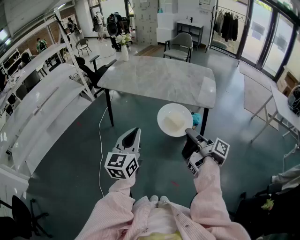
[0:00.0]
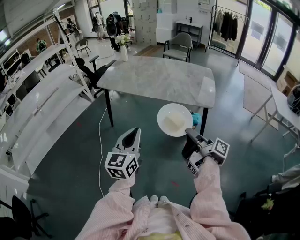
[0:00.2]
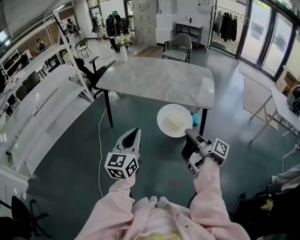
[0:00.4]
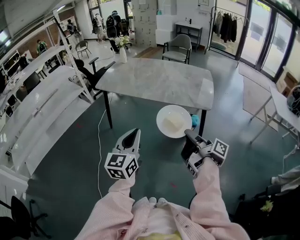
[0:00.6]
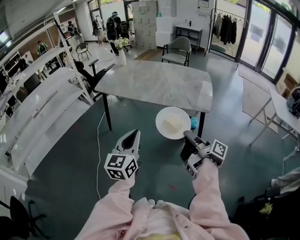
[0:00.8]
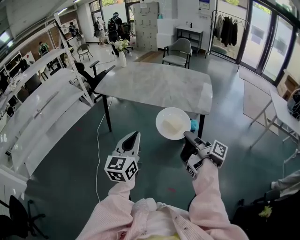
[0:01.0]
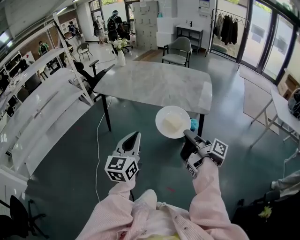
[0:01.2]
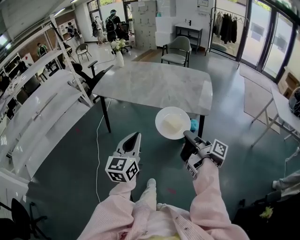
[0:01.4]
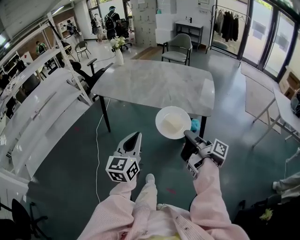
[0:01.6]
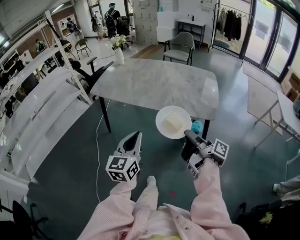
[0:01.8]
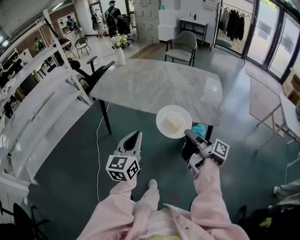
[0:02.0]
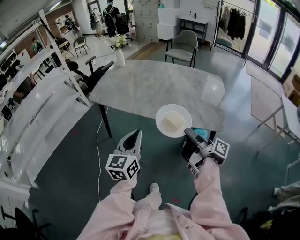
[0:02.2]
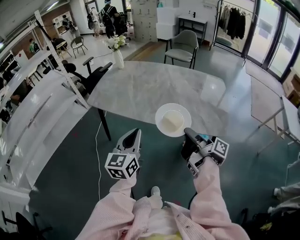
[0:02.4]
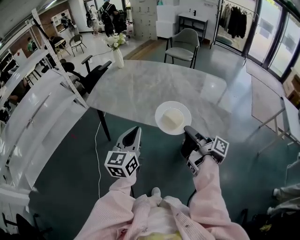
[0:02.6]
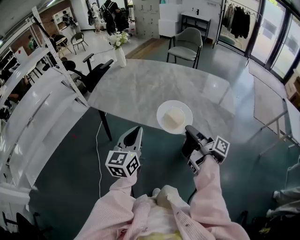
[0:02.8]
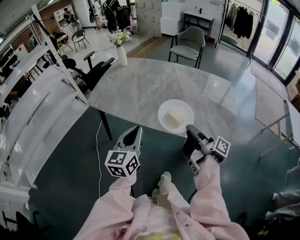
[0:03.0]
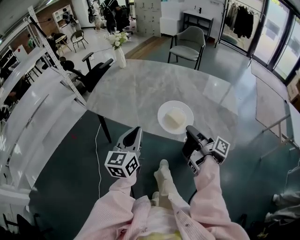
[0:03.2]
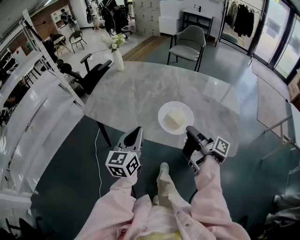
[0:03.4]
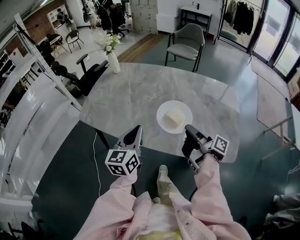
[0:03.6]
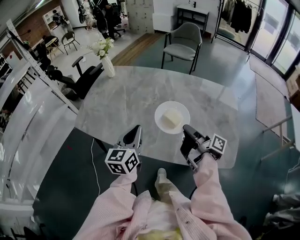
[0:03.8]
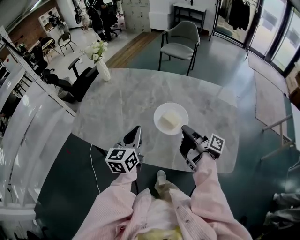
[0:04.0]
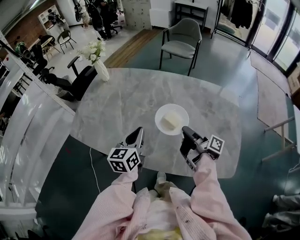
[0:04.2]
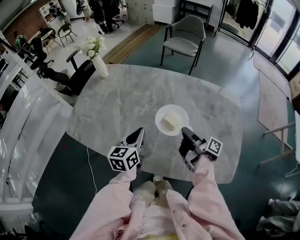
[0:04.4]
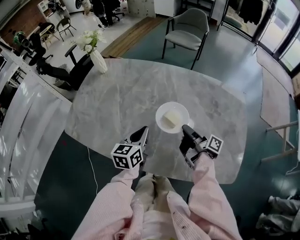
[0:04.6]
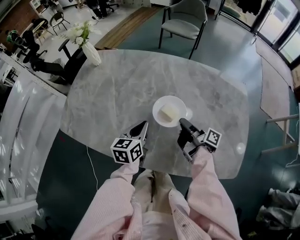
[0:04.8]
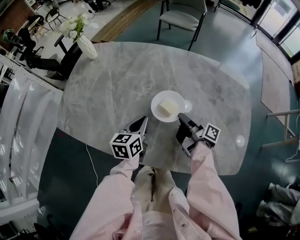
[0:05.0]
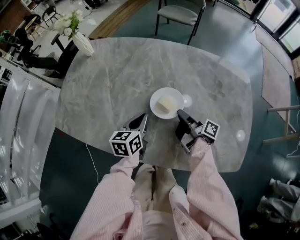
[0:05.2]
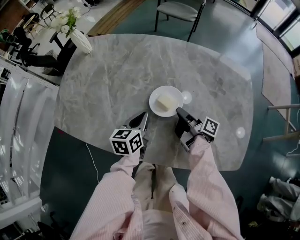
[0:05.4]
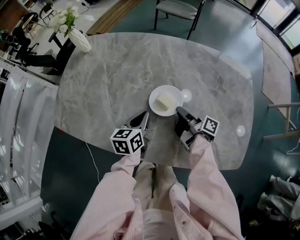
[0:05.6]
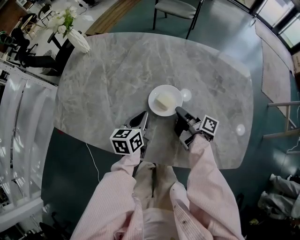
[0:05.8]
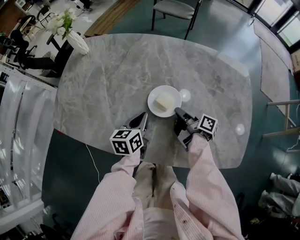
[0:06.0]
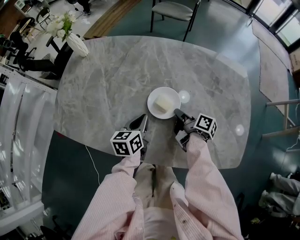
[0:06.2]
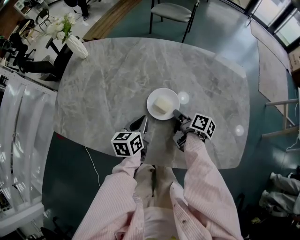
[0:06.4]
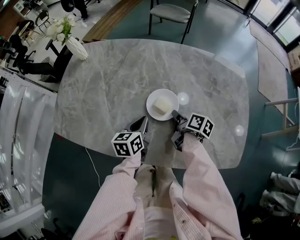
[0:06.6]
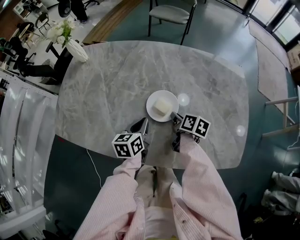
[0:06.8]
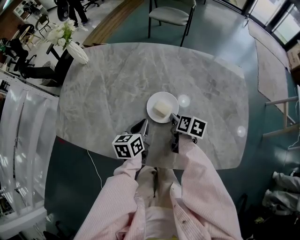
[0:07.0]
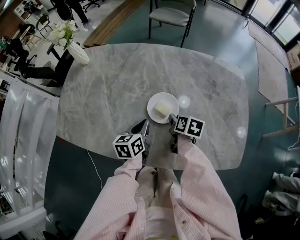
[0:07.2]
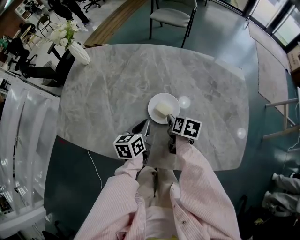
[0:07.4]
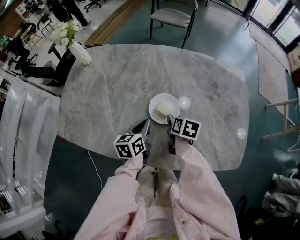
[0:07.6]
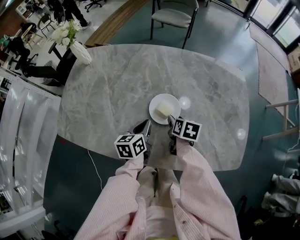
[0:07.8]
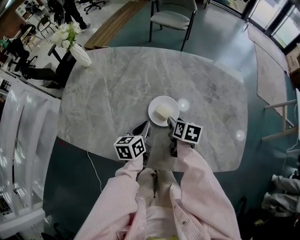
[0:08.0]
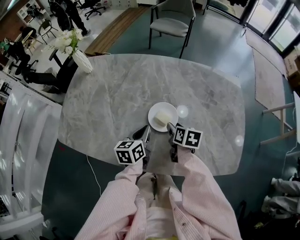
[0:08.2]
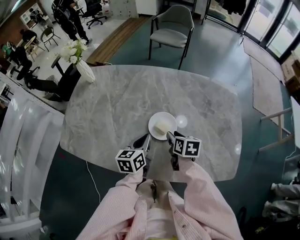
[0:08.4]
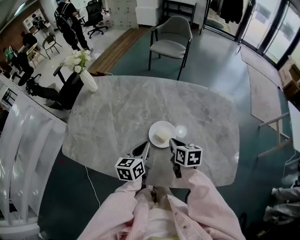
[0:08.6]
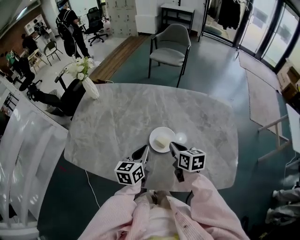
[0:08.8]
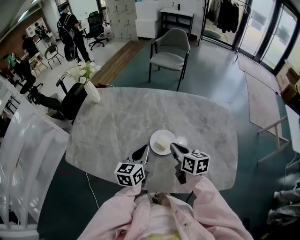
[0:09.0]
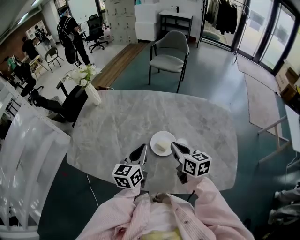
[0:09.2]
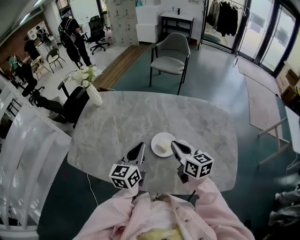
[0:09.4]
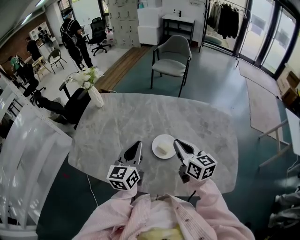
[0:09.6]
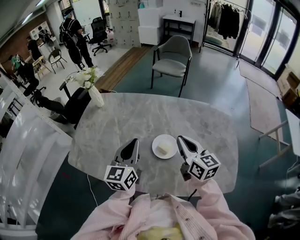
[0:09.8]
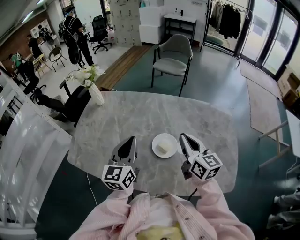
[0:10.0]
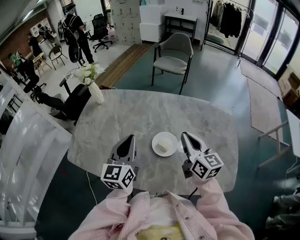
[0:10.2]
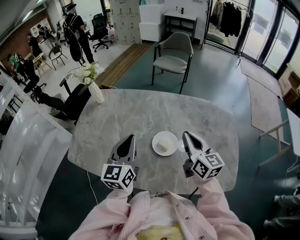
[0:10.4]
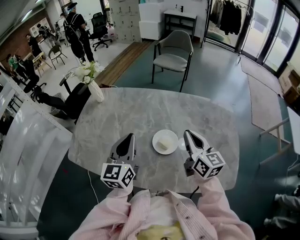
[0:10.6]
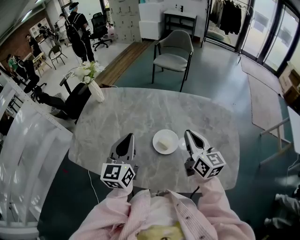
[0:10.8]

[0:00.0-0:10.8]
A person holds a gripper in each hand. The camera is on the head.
0:00.0 to 0:01.6: The left gripper ends up approximately 10 cm from where it was.
0:01.6 to 0:03.0: The left gripper changes place by some 35 cm.
0:03.0 to 0:04.6: The left gripper ends up about 35 cm from where it was, and changes its angle by roughly 20 degrees.
0:04.6 to 0:06.2: The left gripper moves downward, roughly 10 cm.
0:07.8 to 0:09.2: The left gripper shifts approximately 15 cm upward, and swivels some 20 degrees.
0:09.2 to 0:10.8: The left gripper heads upward, covering about 10 cm.

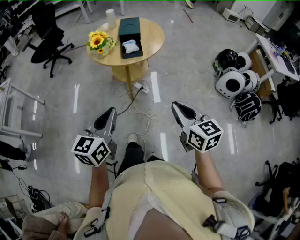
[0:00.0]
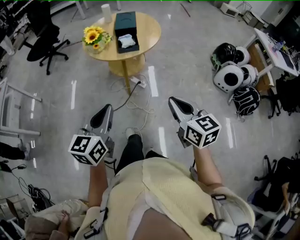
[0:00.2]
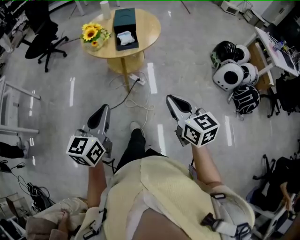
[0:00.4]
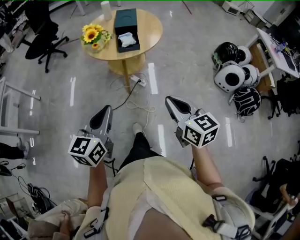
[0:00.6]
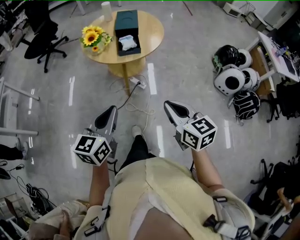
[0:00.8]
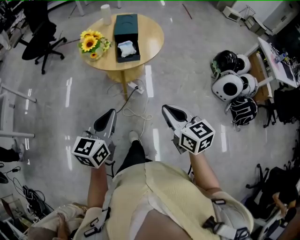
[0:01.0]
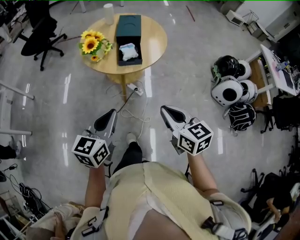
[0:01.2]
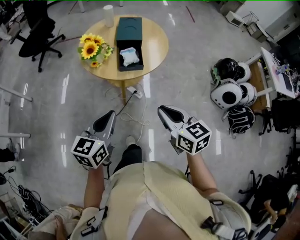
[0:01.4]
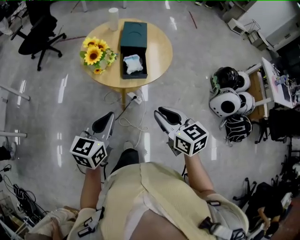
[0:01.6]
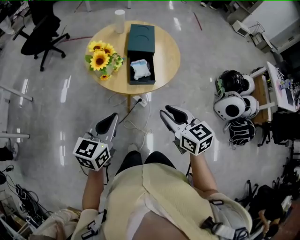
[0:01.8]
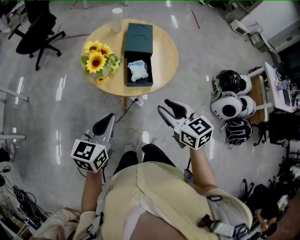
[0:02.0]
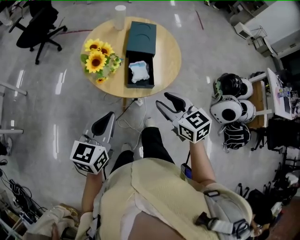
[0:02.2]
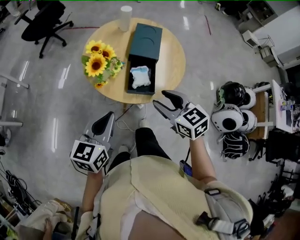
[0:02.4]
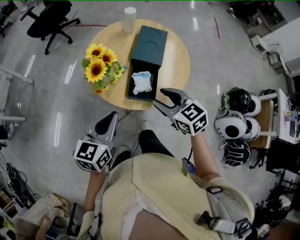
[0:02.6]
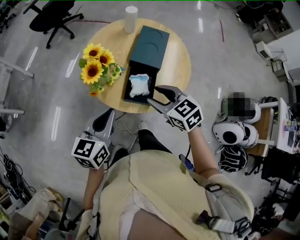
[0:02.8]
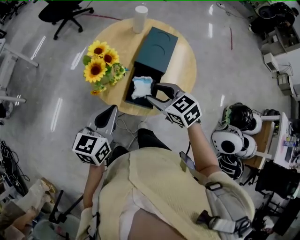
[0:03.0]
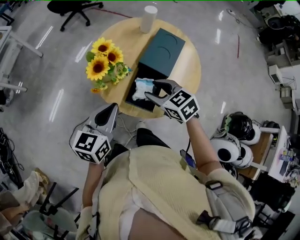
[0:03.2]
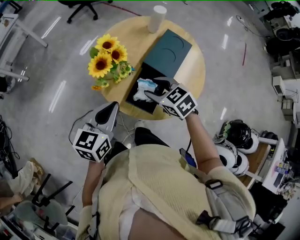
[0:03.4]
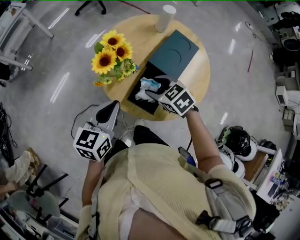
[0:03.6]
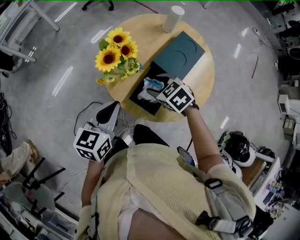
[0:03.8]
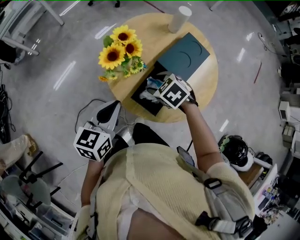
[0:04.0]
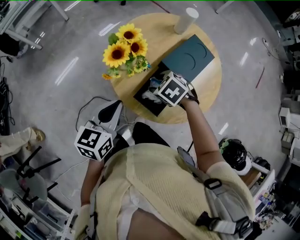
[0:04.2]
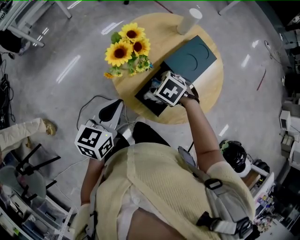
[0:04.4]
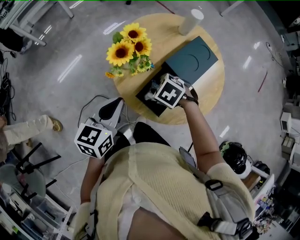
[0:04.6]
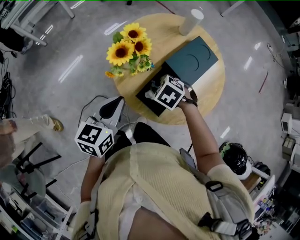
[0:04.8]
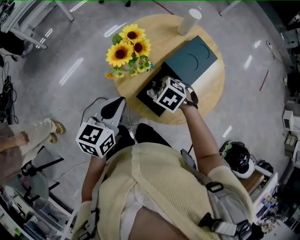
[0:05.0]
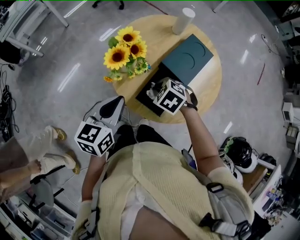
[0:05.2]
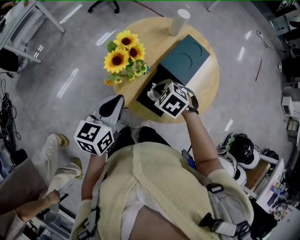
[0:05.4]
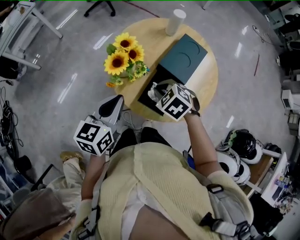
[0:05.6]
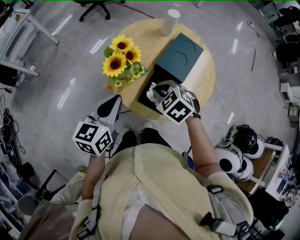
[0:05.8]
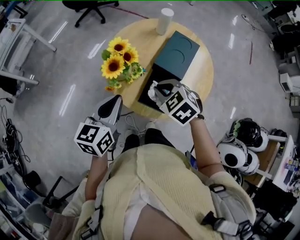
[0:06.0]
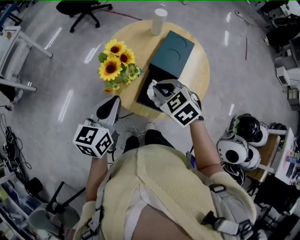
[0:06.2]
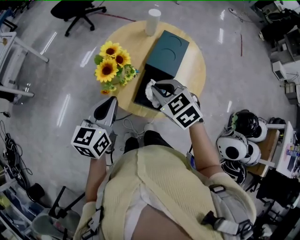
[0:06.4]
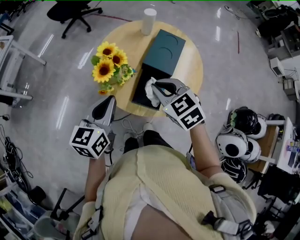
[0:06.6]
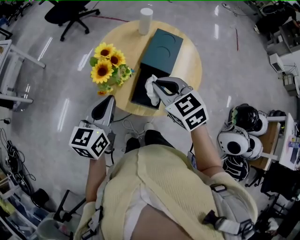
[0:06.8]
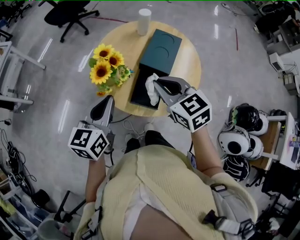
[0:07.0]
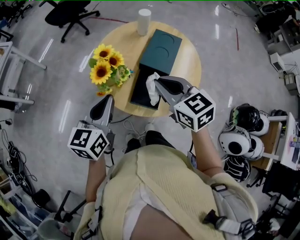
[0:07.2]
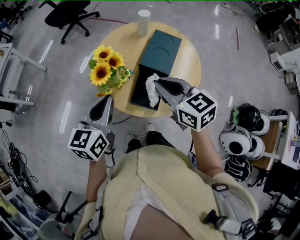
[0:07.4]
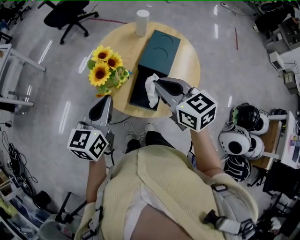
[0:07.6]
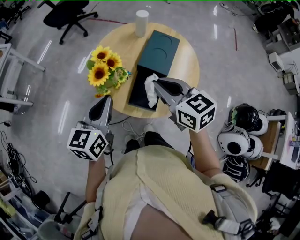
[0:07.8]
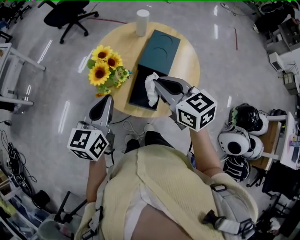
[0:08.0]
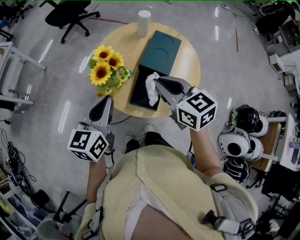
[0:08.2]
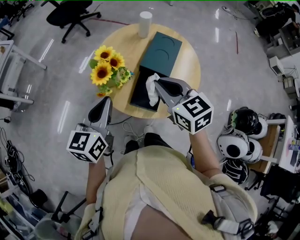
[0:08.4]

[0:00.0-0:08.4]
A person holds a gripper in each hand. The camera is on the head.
0:00.0 to 0:01.4: Both grippers move forward, some 15 cm.
0:01.4 to 0:02.8: The grippers both shift forward by roughly 25 cm. The right gripper rotates some 40 degrees, and opens.
0:02.8 to 0:04.2: The left gripper turns by roughly 20 degrees, while the right gripper is displaced downward by some 10 cm, and angles its fingers downward, by about 30 degrees.
0:04.2 to 0:05.6: The right gripper closes.
0:05.6 to 0:07.0: The right gripper is displaced upward by approximately 15 cm, and points its fingers some 30 degrees further upward.
0:07.0 to 0:08.4: There are only small adjustments of the grippers.

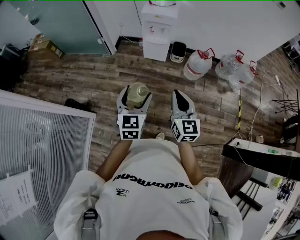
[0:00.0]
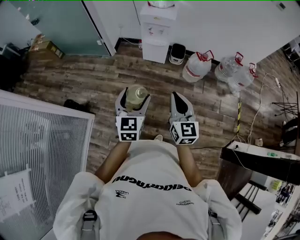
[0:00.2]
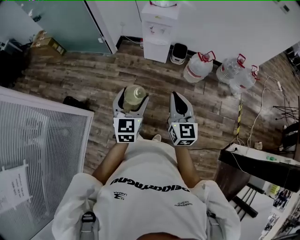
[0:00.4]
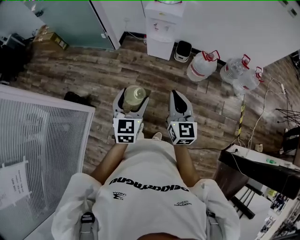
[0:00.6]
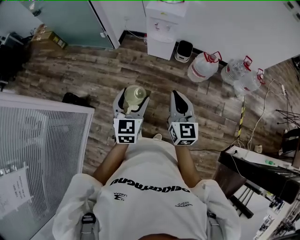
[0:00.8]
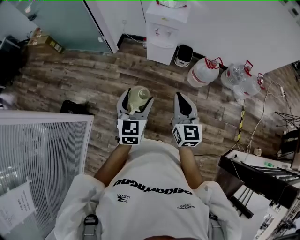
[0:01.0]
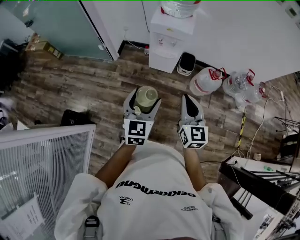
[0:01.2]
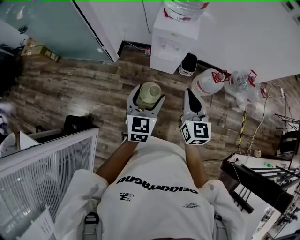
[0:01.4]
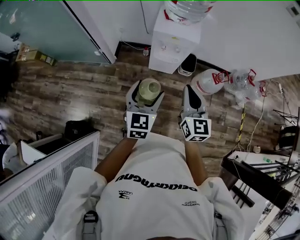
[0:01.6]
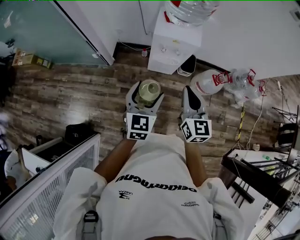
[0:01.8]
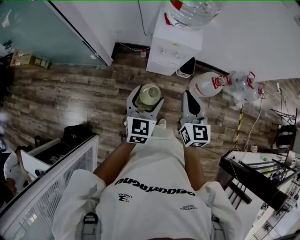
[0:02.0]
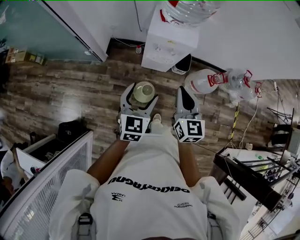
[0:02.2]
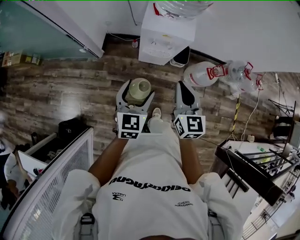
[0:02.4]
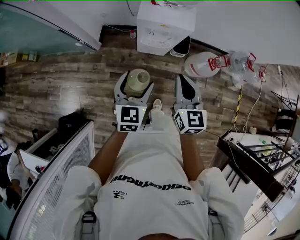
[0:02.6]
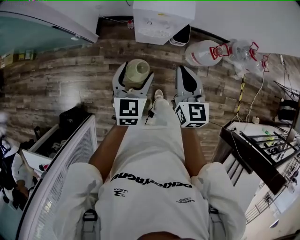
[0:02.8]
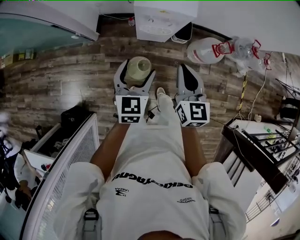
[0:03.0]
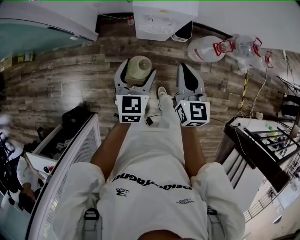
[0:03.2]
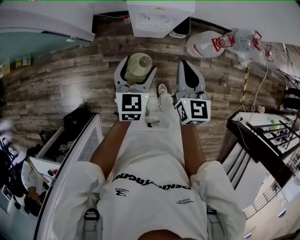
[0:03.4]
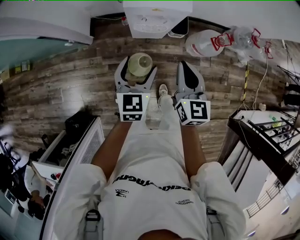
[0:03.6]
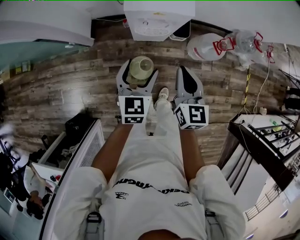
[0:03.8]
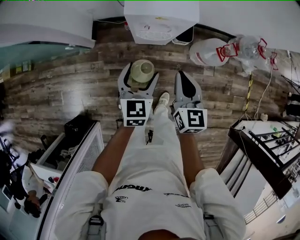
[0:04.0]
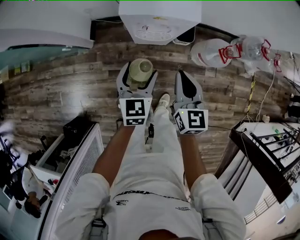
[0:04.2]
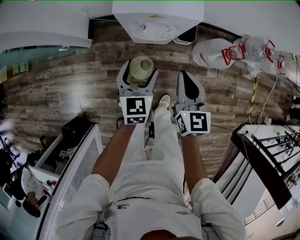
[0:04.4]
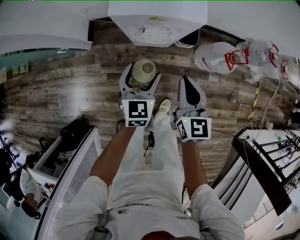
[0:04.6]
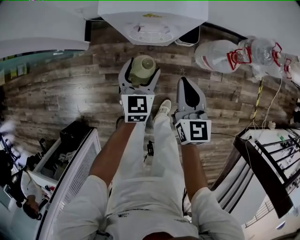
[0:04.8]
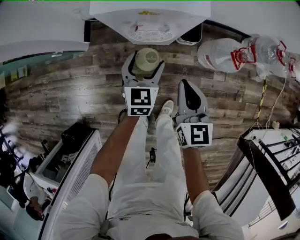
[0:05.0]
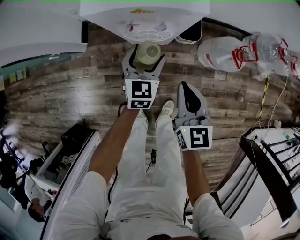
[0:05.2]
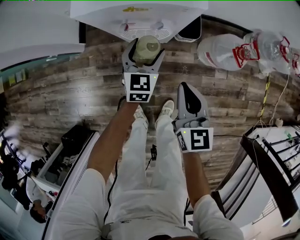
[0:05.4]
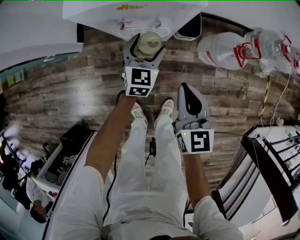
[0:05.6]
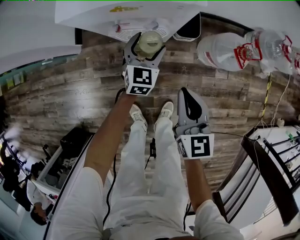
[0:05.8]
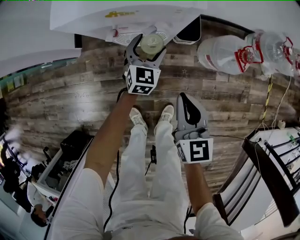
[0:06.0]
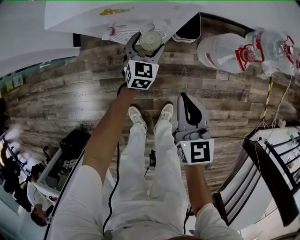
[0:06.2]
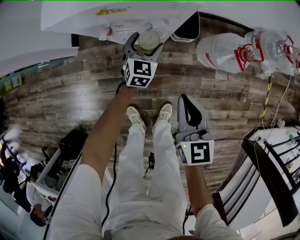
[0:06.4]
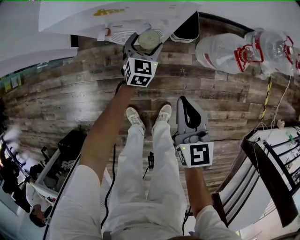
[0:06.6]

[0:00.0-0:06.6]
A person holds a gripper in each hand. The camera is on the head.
0:00.0 to 0:01.6: The two grippers travel together, forward, some 40 cm.
0:01.6 to 0:03.2: The grippers both shift forward and downward by approximately 15 cm.
0:03.2 to 0:05.0: The right gripper goes about 25 cm downward. The left gripper travels downward and forward by approximately 30 cm.
0:05.0 to 0:06.6: The left gripper is displaced downward and forward by about 20 cm; the right gripper moves downward and to the right, approximately 10 cm.
